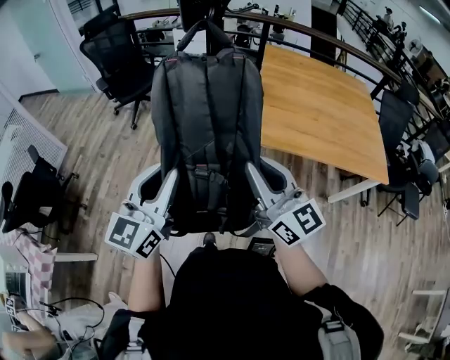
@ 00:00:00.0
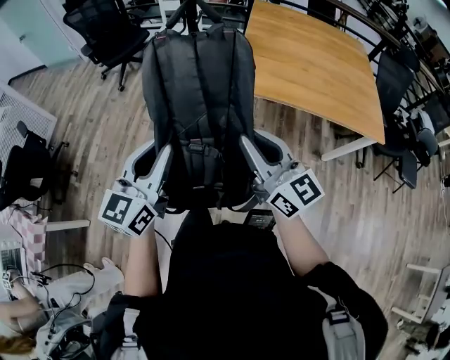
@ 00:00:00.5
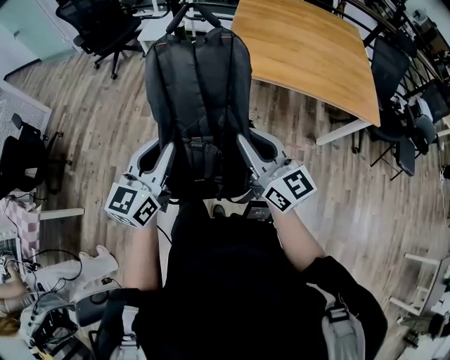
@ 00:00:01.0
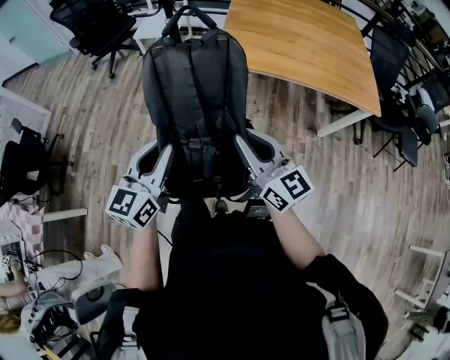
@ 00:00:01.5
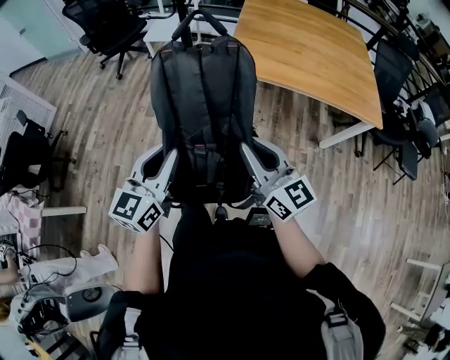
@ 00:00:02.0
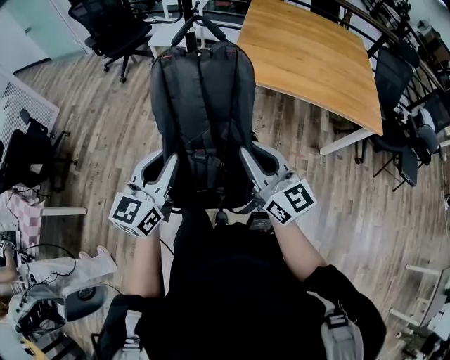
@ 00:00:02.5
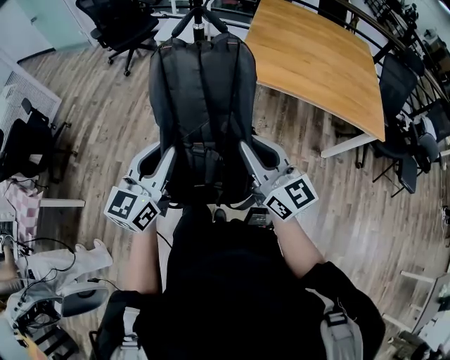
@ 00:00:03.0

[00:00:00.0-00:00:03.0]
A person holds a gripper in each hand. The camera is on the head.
00:00:00.0 to 00:00:01.5: The two grippers go about 20 cm backward, downward and to the right.
00:00:01.5 to 00:00:03.0: The grippers make only small movements.

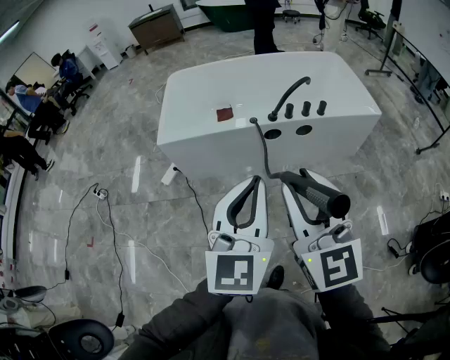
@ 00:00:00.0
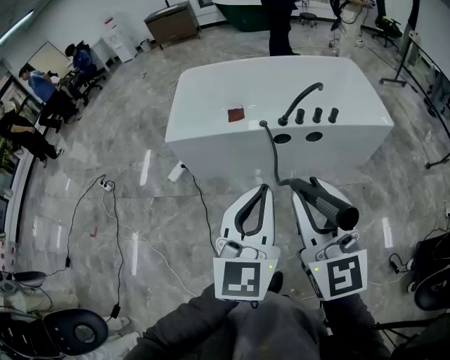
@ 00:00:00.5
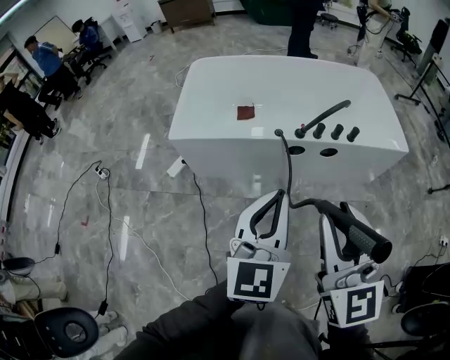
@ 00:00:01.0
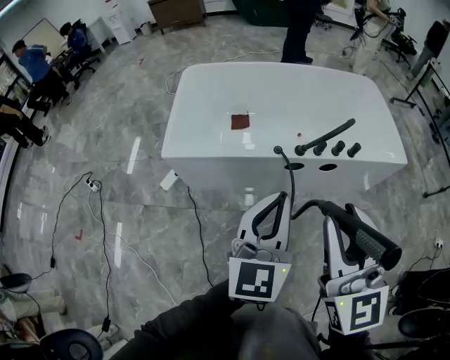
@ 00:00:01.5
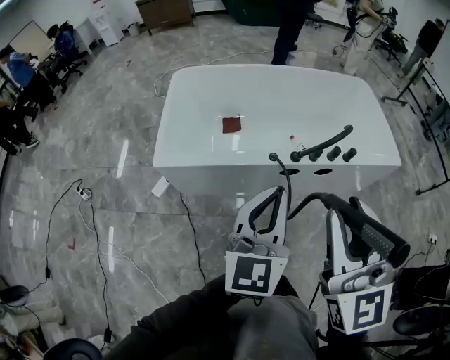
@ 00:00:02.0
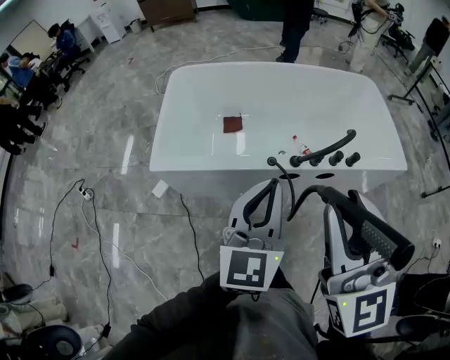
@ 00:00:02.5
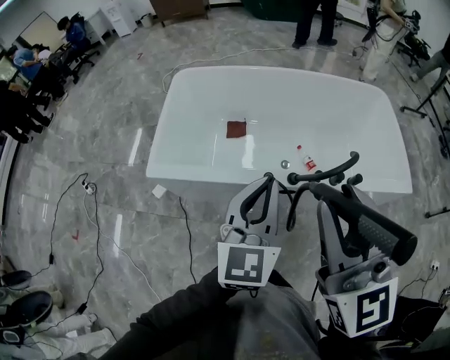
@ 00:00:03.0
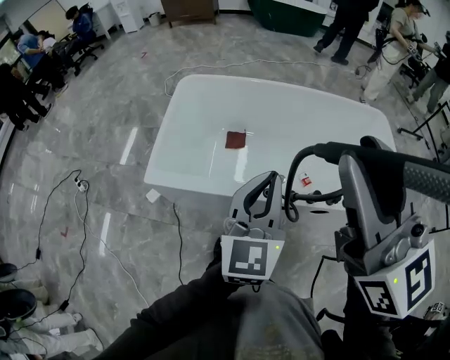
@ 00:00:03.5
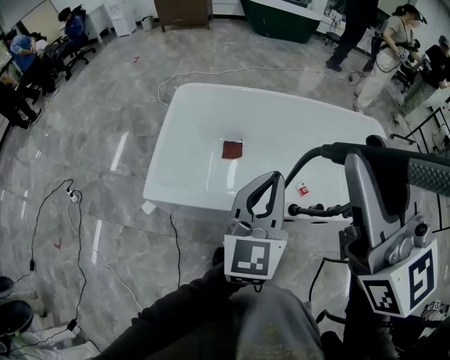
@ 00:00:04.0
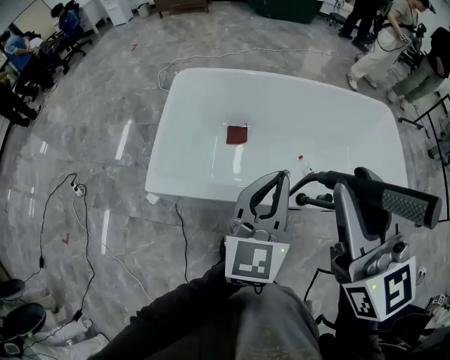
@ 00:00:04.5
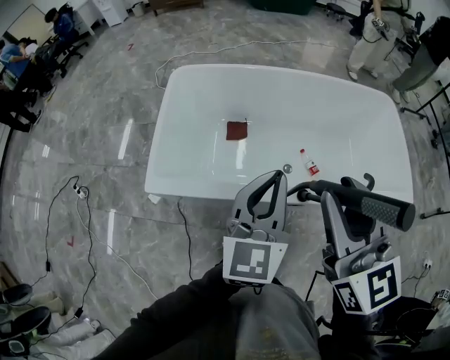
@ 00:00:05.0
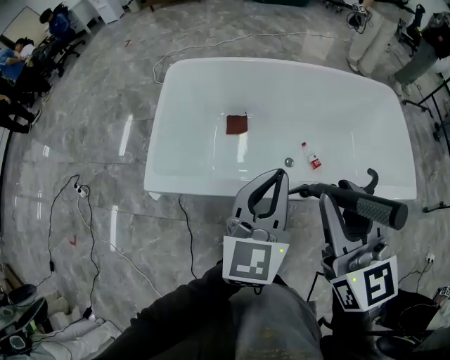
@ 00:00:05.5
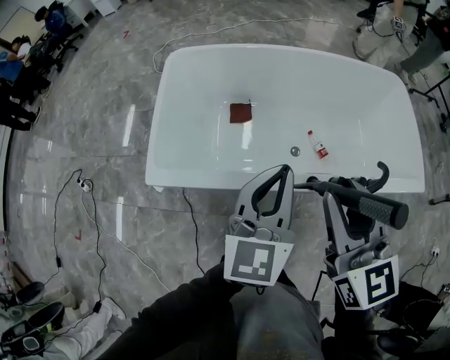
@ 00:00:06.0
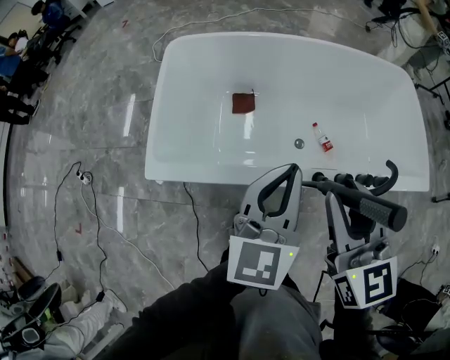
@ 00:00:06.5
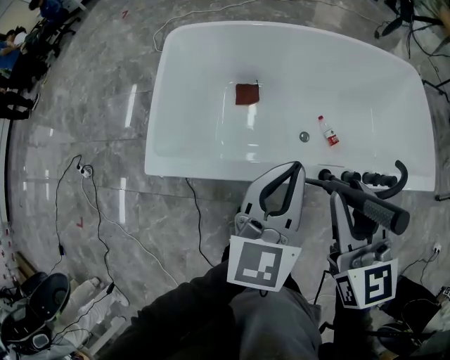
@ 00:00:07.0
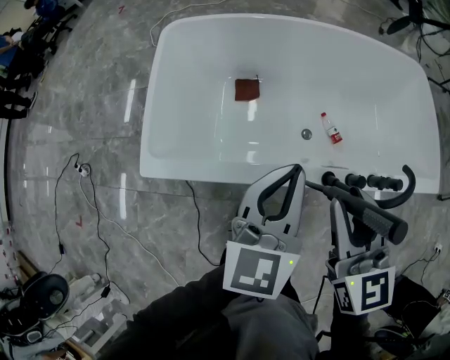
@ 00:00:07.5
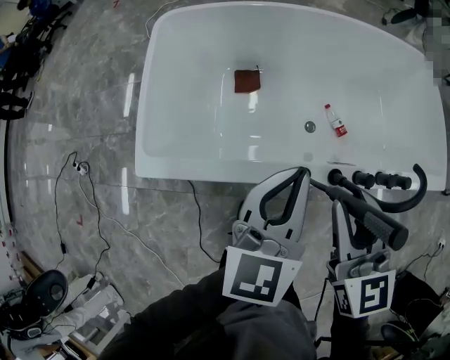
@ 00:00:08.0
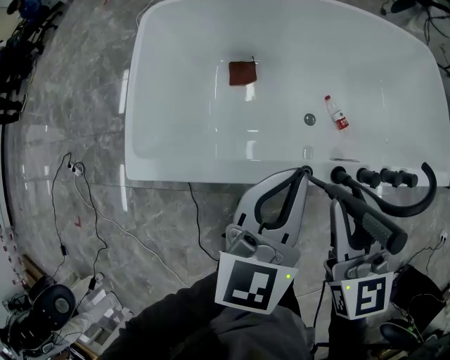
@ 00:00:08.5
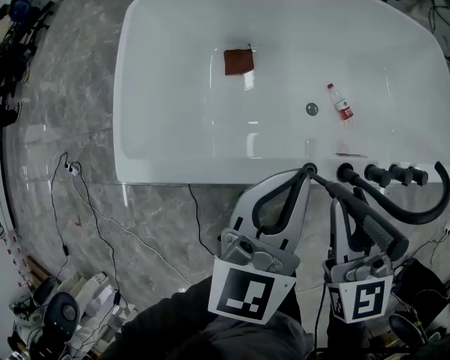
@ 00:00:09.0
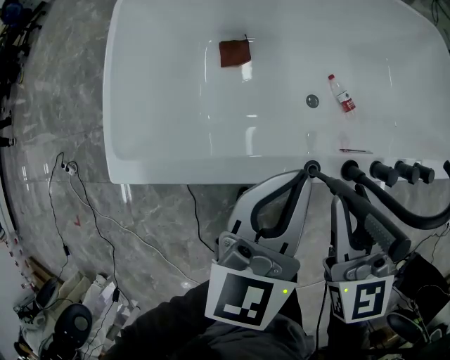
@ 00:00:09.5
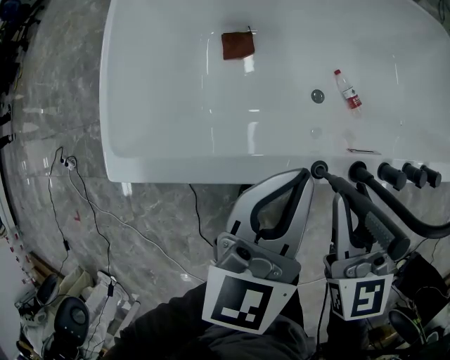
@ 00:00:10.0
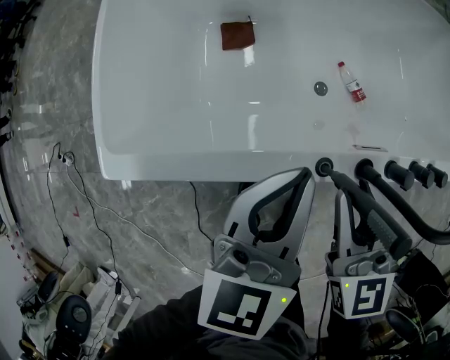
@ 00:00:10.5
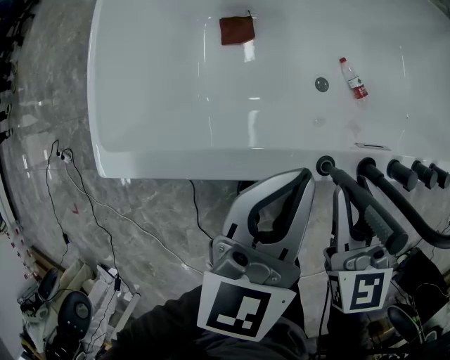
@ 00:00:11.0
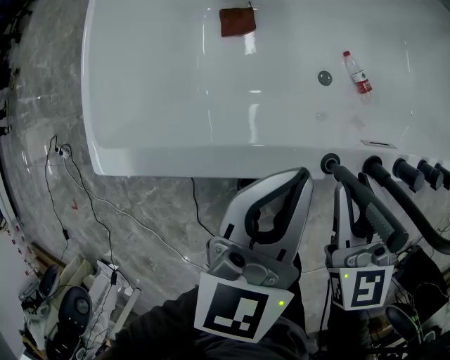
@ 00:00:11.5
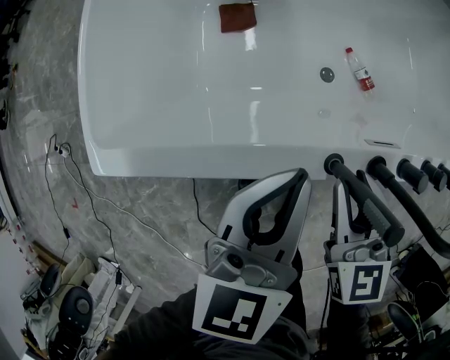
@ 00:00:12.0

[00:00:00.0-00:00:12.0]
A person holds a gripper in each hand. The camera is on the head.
00:00:00.0 to 00:00:02.0: Both grippers move forward, roughly 25 cm.
00:00:02.0 to 00:00:04.0: The left gripper moves forward, some 25 cm, while the right gripper goes roughly 30 cm forward and upward, and turns by about 20 degrees.
00:00:04.0 to 00:00:06.0: The left gripper moves downward, roughly 5 cm. Meanwhile the right gripper travels downward by roughly 20 cm, and swivels about 20 degrees.
00:00:06.0 to 00:00:08.0: Both grippers travel together downward, approximately 10 cm.
00:00:08.0 to 00:00:10.0: Both grippers move downward, roughly 15 cm.
00:00:10.0 to 00:00:12.0: The left gripper heads downward, covering some 5 cm; the right gripper shifts about 10 cm downward.

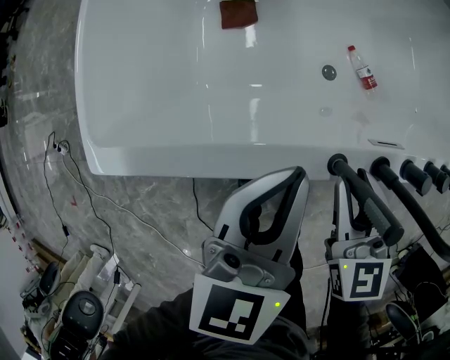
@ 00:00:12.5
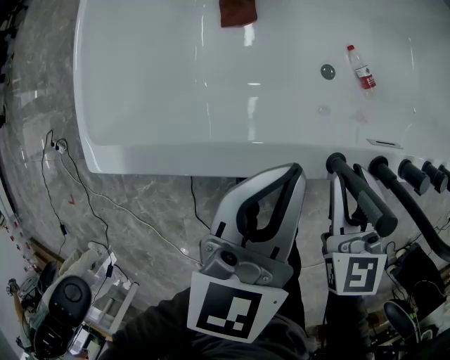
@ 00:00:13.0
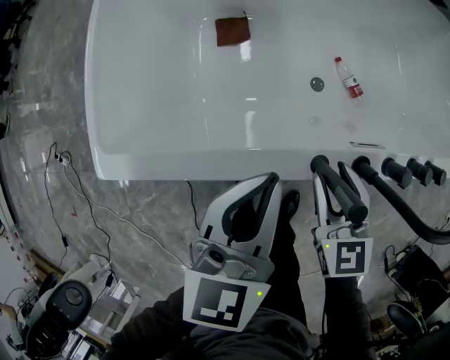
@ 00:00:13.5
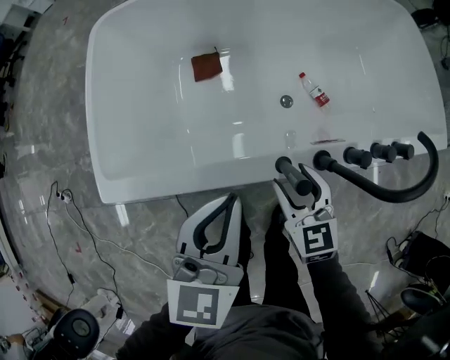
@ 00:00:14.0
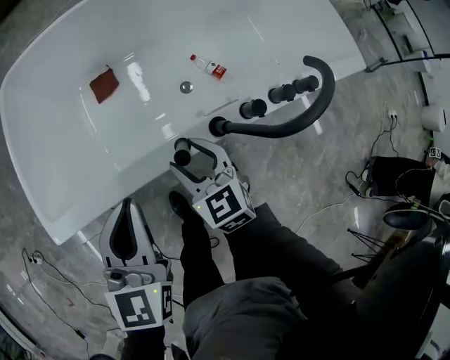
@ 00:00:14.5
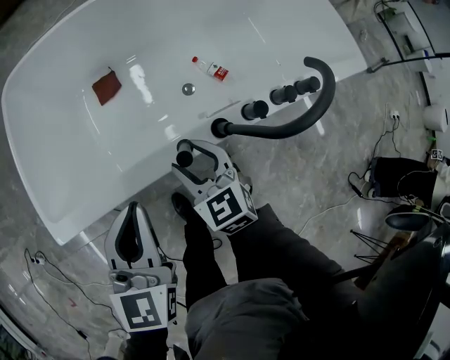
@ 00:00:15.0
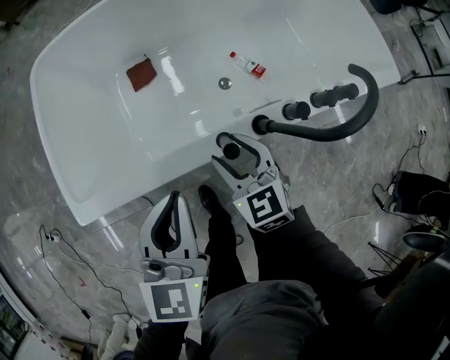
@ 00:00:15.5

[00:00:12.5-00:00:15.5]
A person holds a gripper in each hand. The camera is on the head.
00:00:12.5 to 00:00:14.0: The right gripper opens, while the left gripper goes roughly 5 cm upward.
00:00:14.0 to 00:00:15.5: The grippers move only a little.

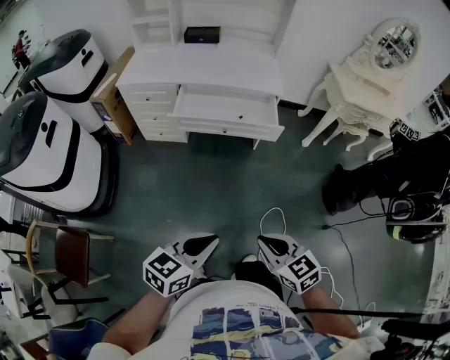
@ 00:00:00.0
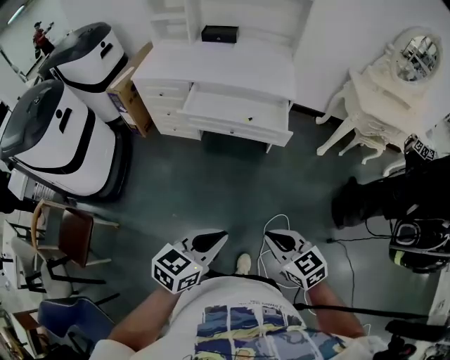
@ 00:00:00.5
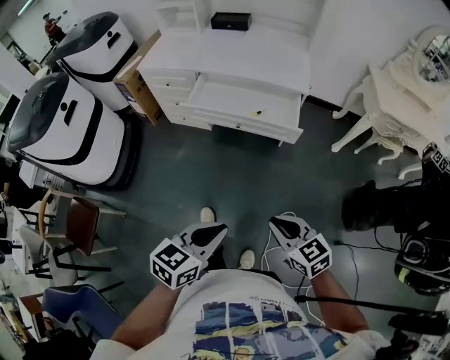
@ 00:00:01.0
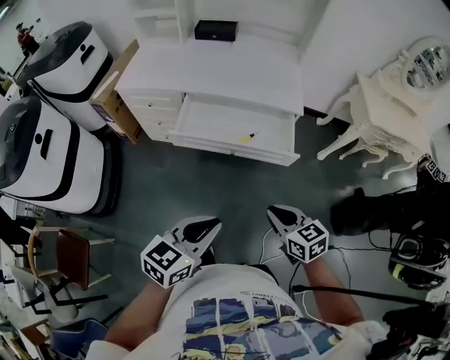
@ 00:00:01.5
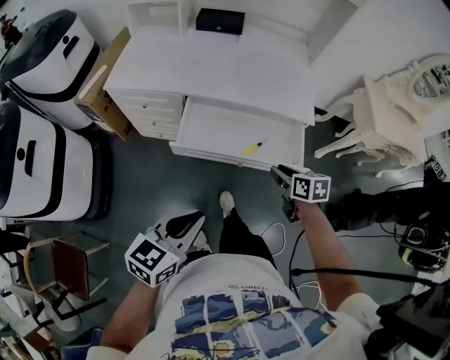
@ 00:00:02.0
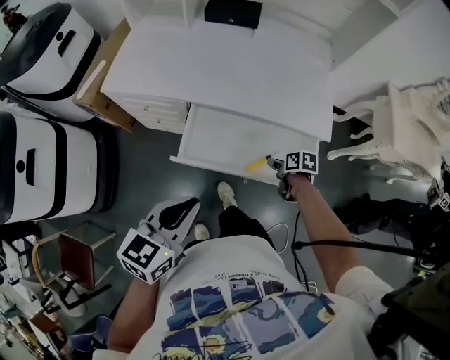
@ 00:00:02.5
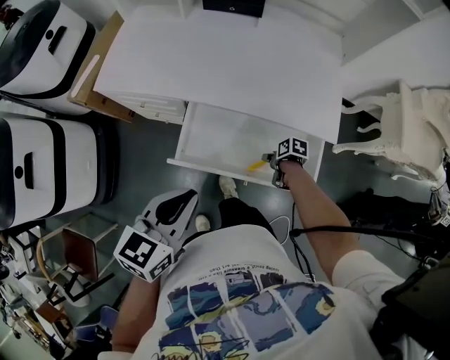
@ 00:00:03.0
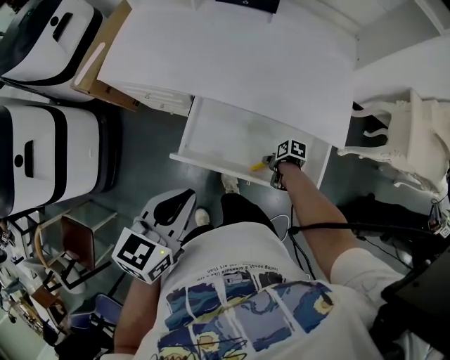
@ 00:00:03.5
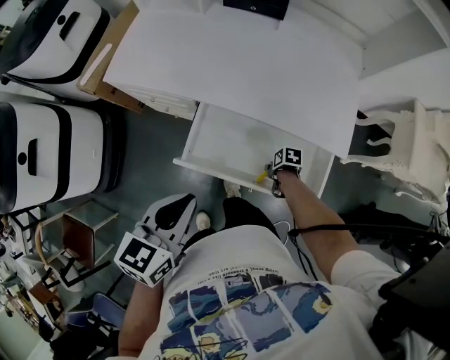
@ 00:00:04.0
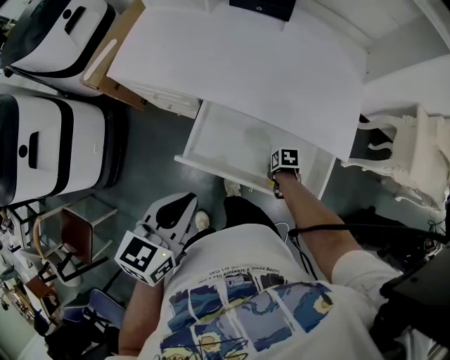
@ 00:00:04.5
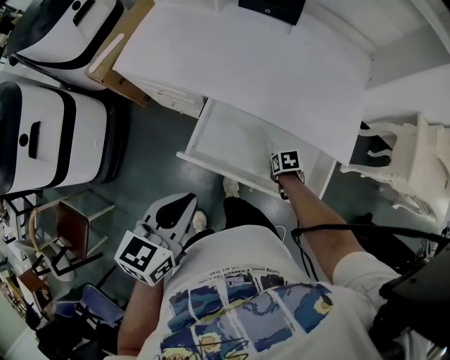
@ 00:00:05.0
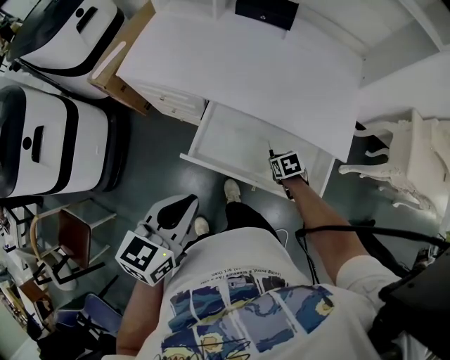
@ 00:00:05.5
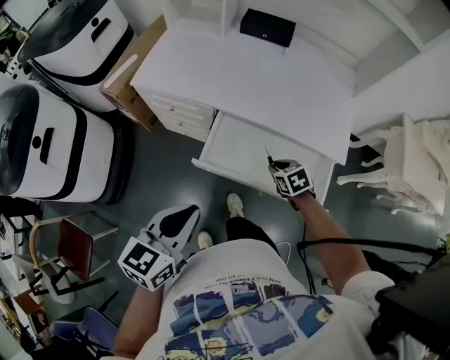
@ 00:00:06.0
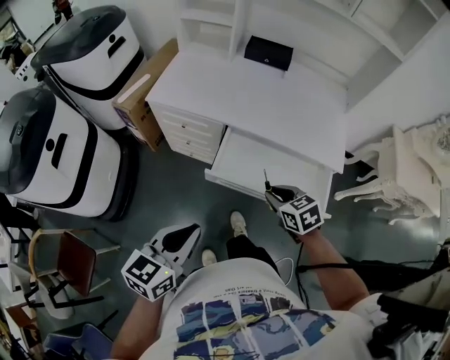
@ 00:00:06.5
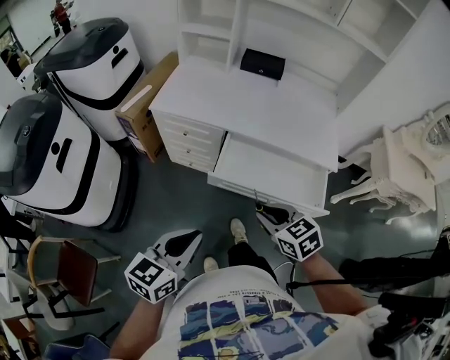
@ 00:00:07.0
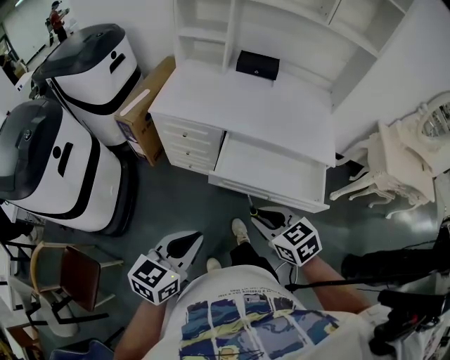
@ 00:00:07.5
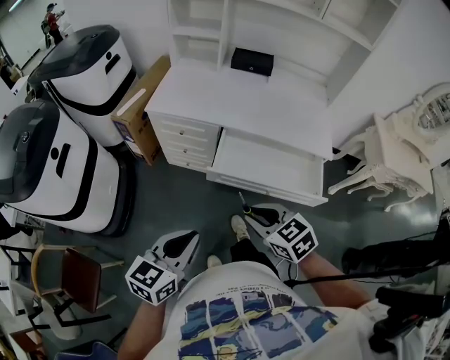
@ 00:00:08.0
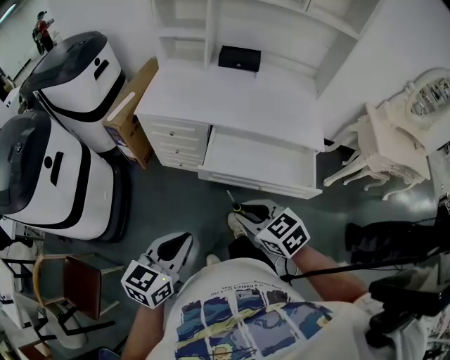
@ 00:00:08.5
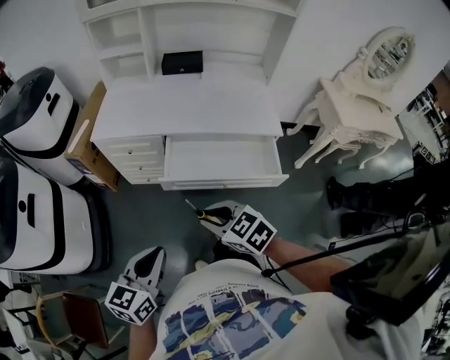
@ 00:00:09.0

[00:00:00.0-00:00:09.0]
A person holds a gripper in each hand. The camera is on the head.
00:00:00.0 to 00:00:02.0: The right gripper heads forward, covering roughly 50 cm, rotates roughly 30 degrees, and opens; the left gripper shifts some 30 cm forward.
00:00:02.0 to 00:00:04.5: The right gripper travels downward by some 25 cm, and tilts its fingers roughly 30 degrees downward, while the left gripper changes place by some 20 cm, and changes its angle by some 20 degrees.
00:00:04.5 to 00:00:07.0: The left gripper moves about 20 cm. The right gripper moves upward, some 35 cm, and angles its fingers upward, by about 40 degrees.
00:00:07.0 to 00:00:09.0: The right gripper heads backward, covering about 5 cm.
